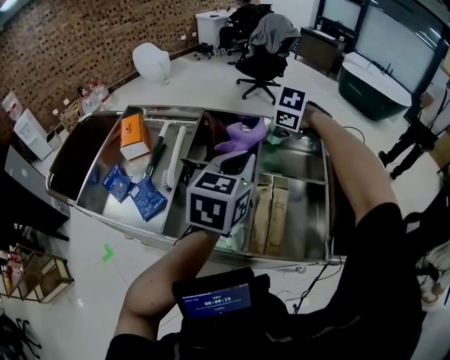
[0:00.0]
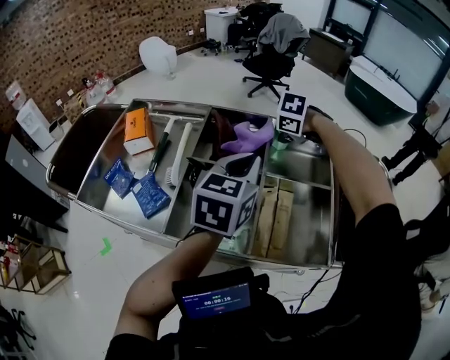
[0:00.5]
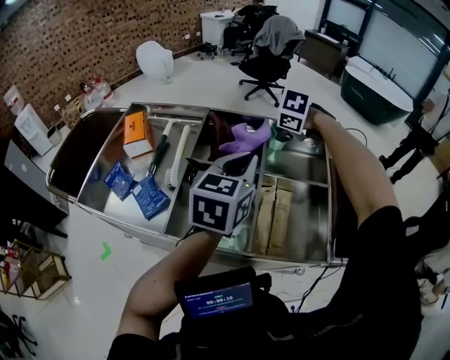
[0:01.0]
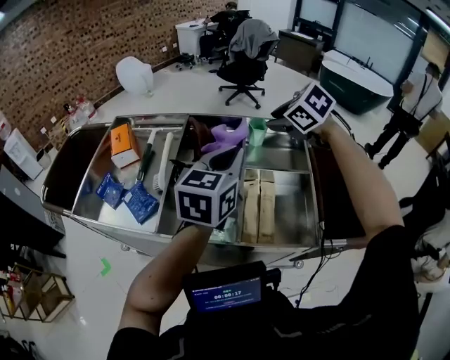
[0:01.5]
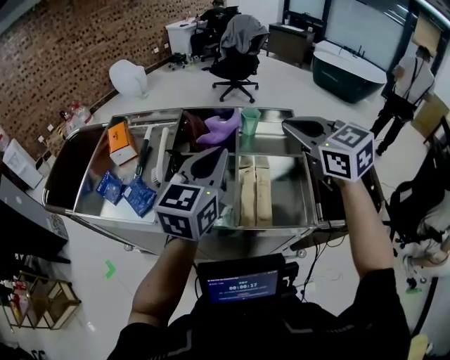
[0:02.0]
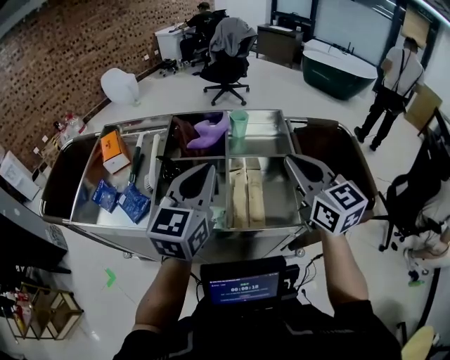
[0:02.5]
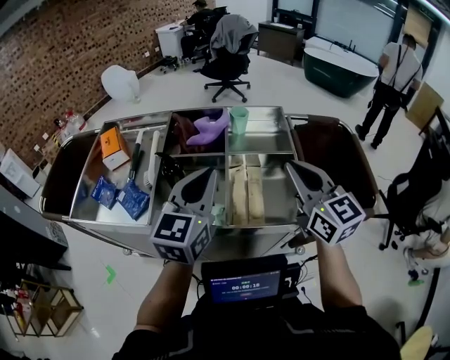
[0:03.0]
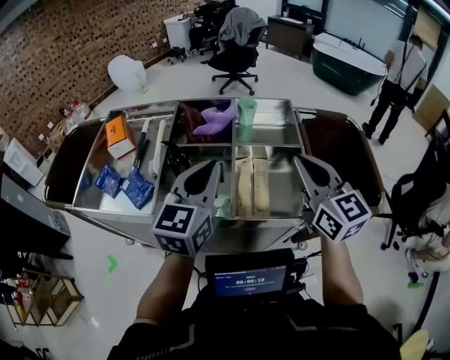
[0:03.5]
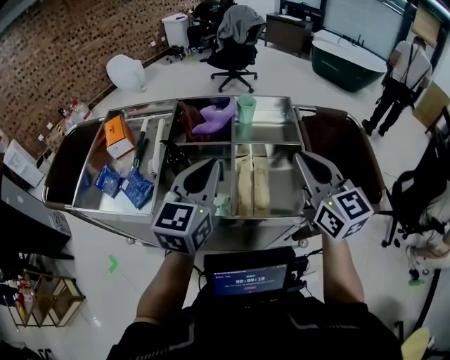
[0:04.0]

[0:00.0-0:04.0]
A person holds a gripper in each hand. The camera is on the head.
0:00.0 to 0:02.0: The left gripper ends up about 10 cm from where it was. Meanwhile the right gripper shifts by about 25 cm, tilts its fingers approximately 60 degrees upward, and opens, then closes again.
0:02.0 to 0:04.0: The left gripper shifts by roughly 5 cm, while the right gripper moves backward, approximately 10 cm, and swivels some 30 degrees.

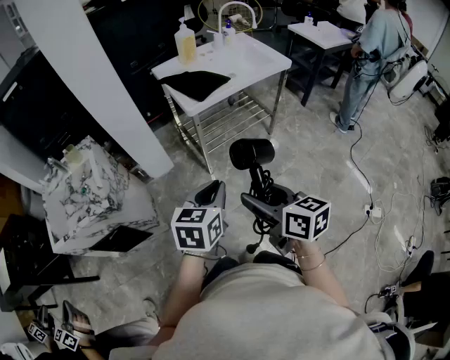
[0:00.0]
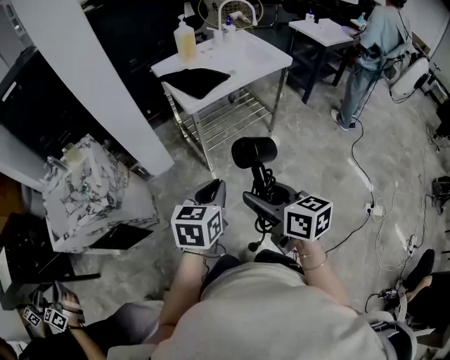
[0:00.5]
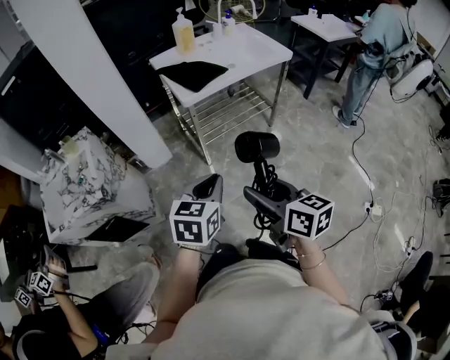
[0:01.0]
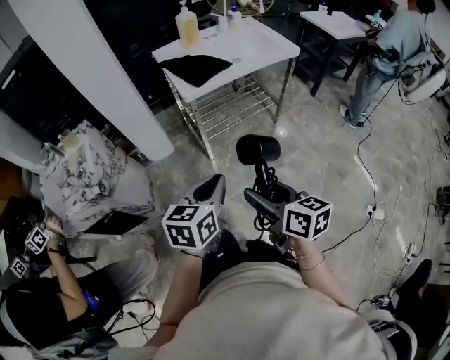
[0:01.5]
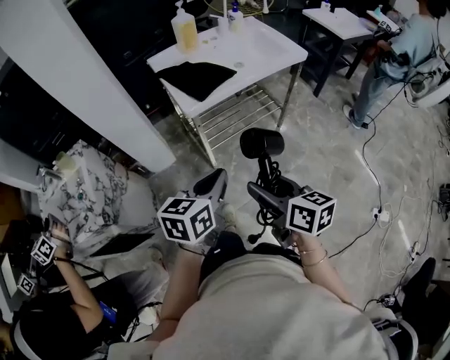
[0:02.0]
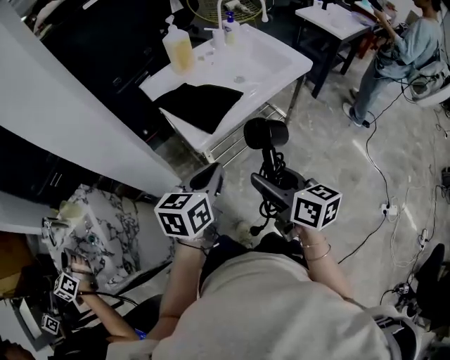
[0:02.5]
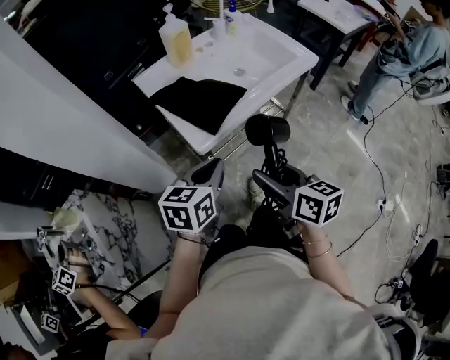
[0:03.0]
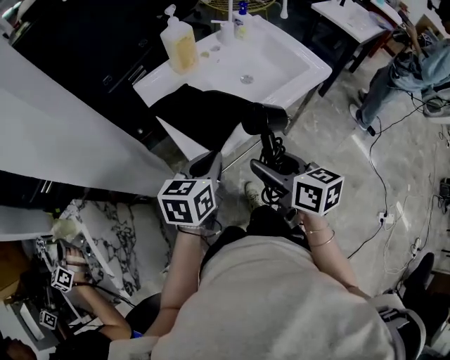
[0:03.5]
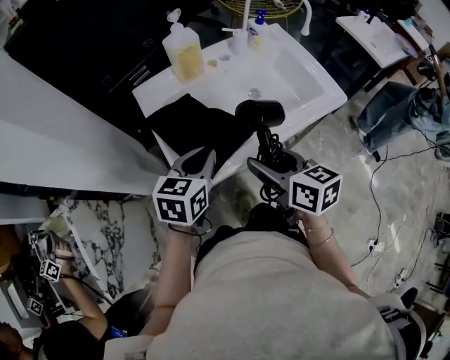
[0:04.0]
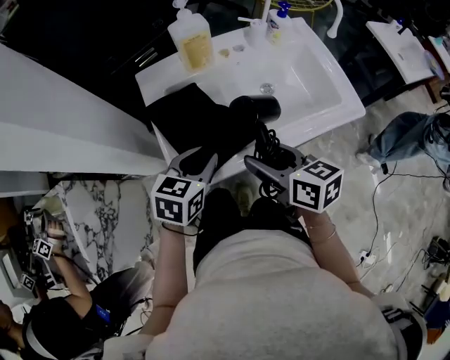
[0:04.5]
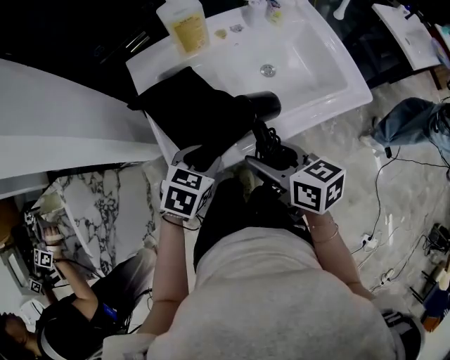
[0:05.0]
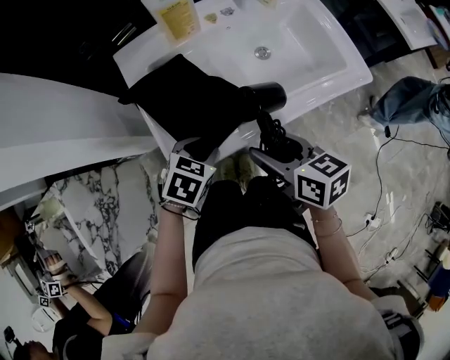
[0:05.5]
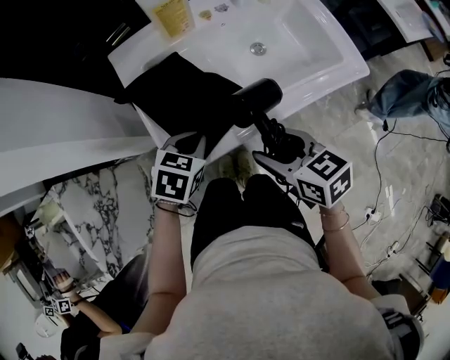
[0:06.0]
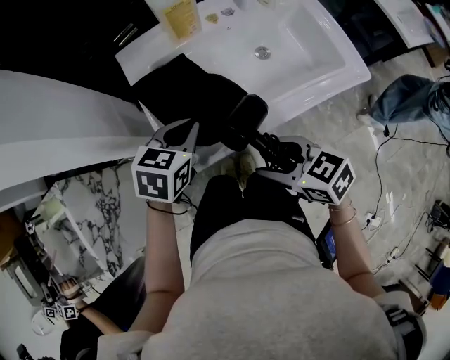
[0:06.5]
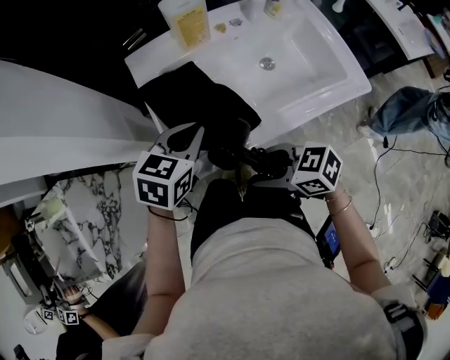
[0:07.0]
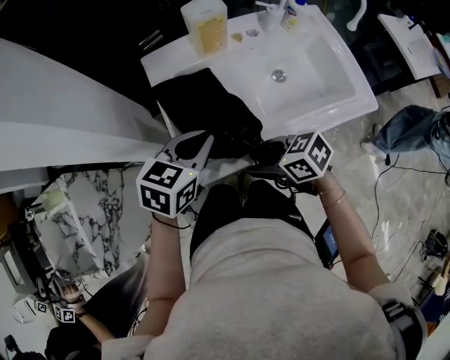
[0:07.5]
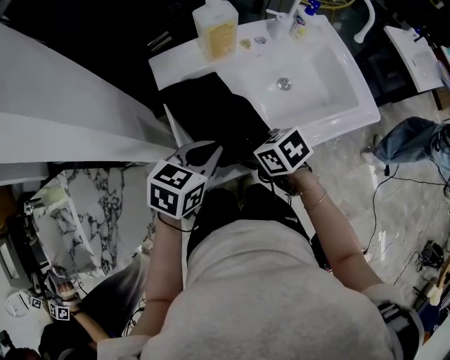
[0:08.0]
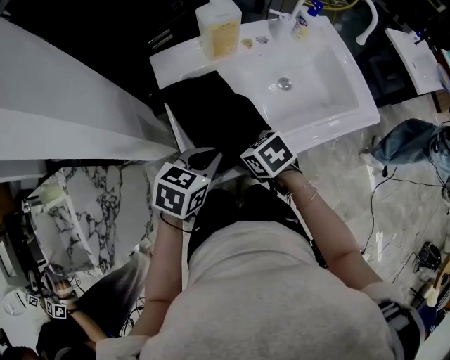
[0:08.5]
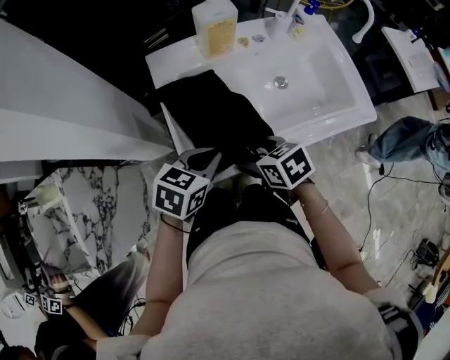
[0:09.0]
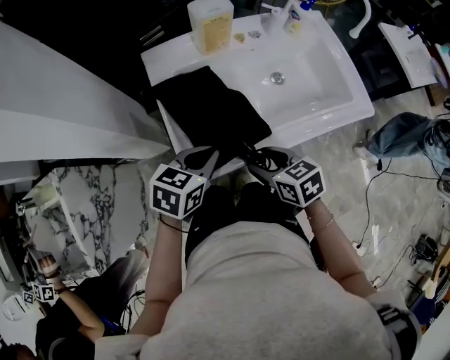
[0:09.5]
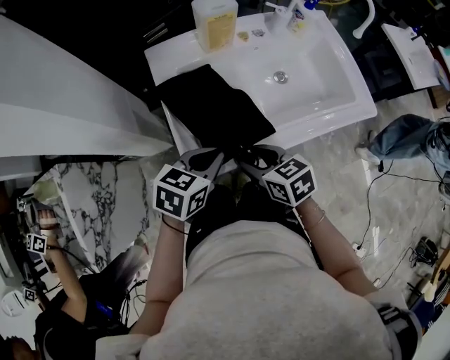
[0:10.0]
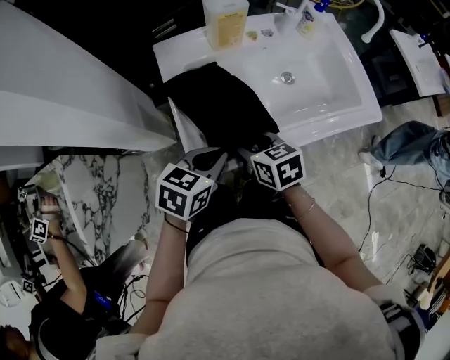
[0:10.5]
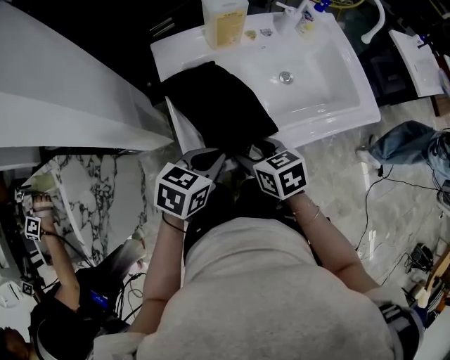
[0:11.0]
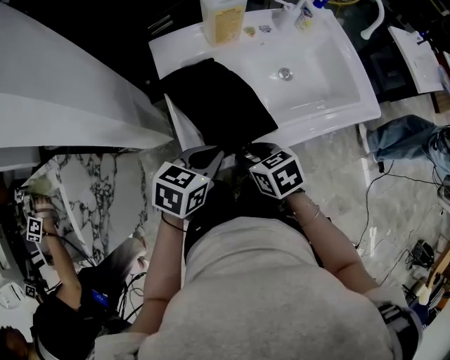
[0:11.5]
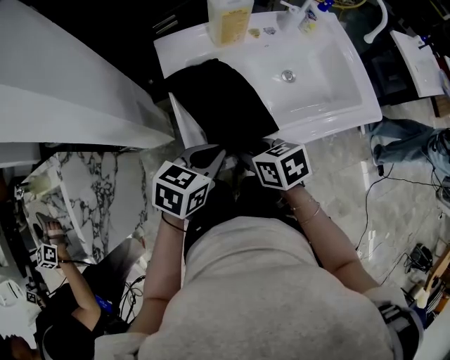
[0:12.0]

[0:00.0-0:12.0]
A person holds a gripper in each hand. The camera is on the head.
0:00.0 to 0:02.0: The grippers both shift forward by some 15 cm.
0:02.0 to 0:04.0: Both grippers are carried forward, some 40 cm.
0:04.0 to 0:06.0: The right gripper heads downward, covering about 5 cm, and turns by roughly 20 degrees; the left gripper moves downward, roughly 10 cm, swivels approximately 30 degrees, and opens, then closes once more.
0:06.0 to 0:08.0: The left gripper shifts roughly 10 cm upward; the right gripper ends up some 10 cm from where it was, and turns by some 20 degrees.
0:10.0 to 0:12.0: The grippers make only small movements.

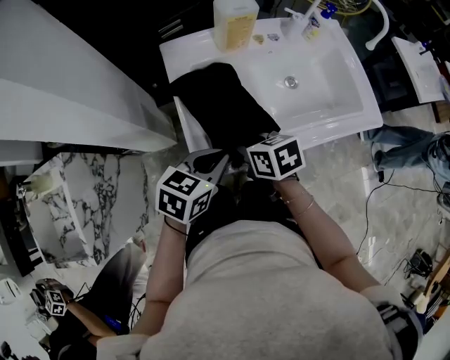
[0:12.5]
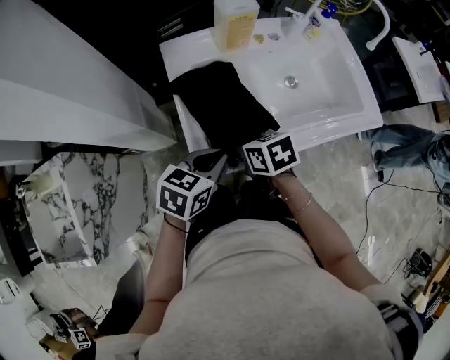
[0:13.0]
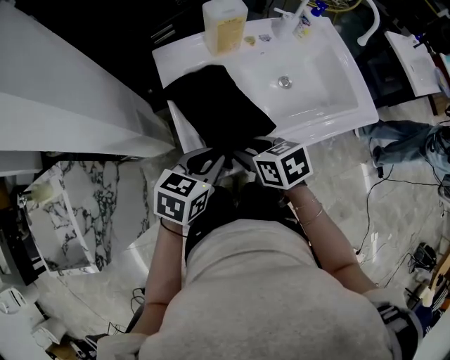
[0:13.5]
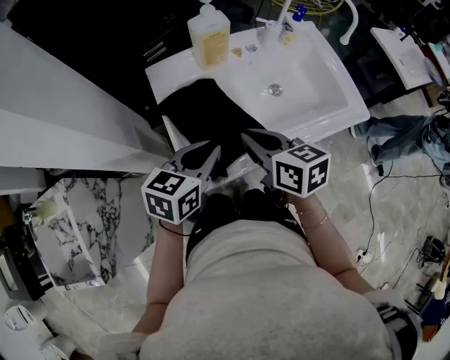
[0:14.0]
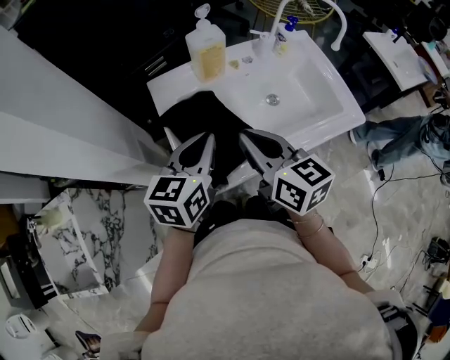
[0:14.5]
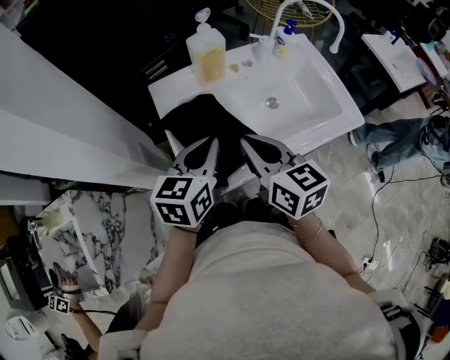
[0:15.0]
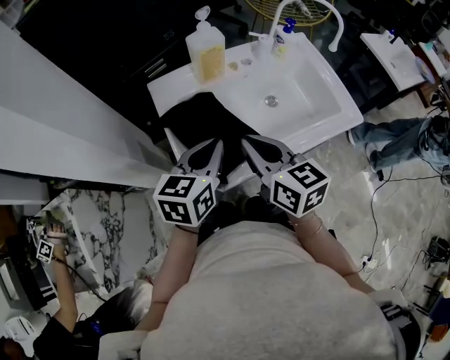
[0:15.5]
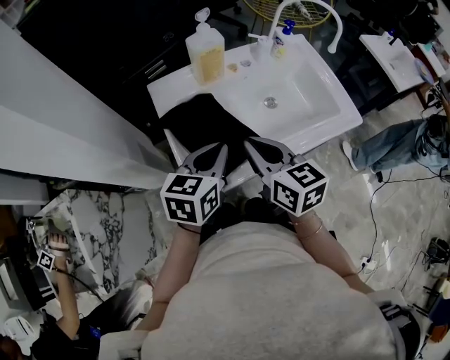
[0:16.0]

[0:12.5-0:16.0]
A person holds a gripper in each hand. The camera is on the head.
0:12.5 to 0:14.5: The left gripper moves upward and forward, roughly 15 cm, and rotates some 20 degrees. The right gripper shifts roughly 15 cm upward, and tips its fingers upward by approximately 30 degrees.
0:14.5 to 0:16.0: The grippers make only small movements.

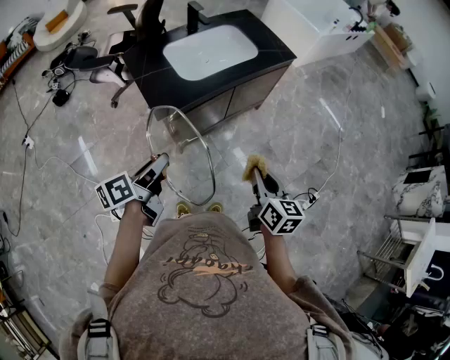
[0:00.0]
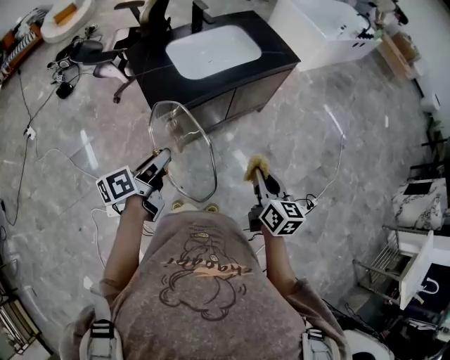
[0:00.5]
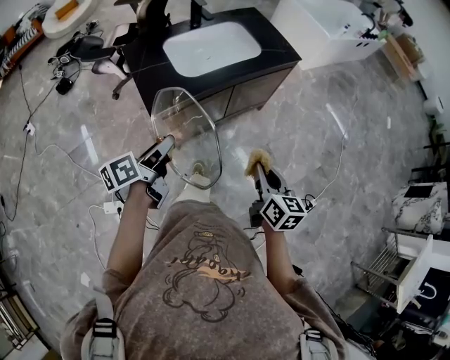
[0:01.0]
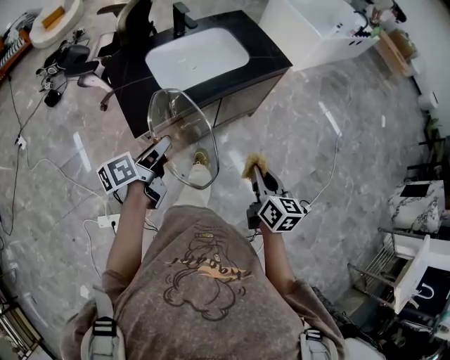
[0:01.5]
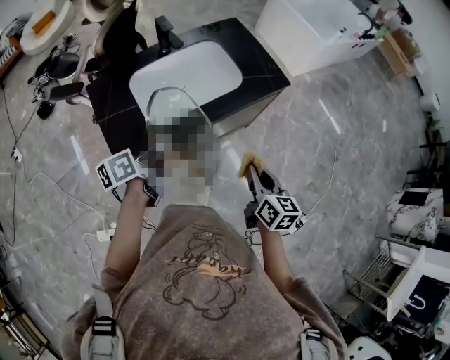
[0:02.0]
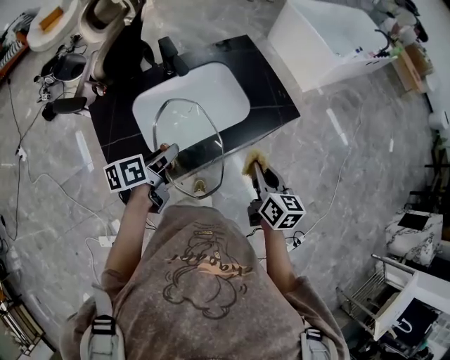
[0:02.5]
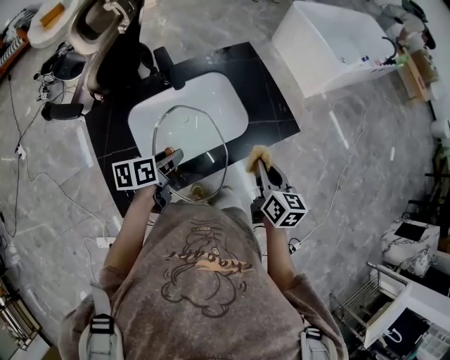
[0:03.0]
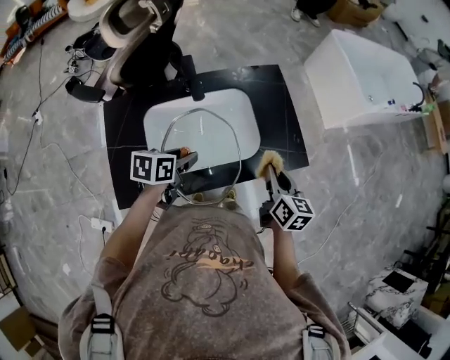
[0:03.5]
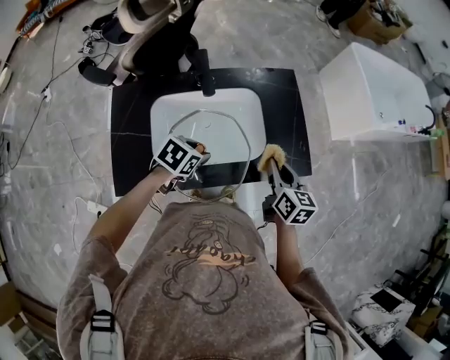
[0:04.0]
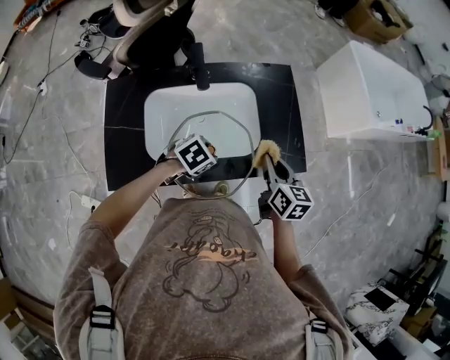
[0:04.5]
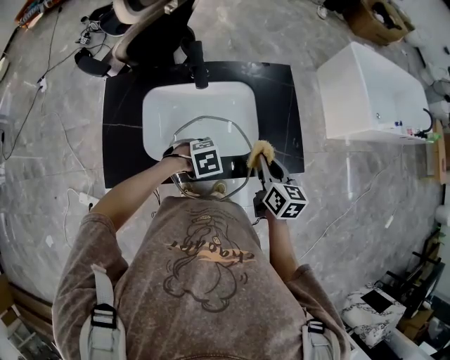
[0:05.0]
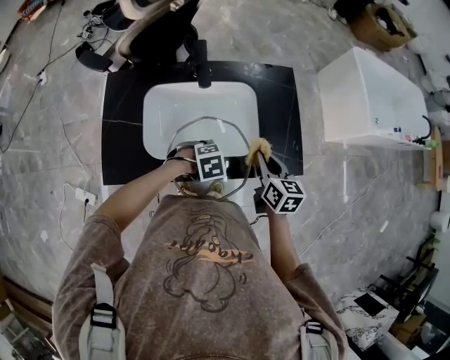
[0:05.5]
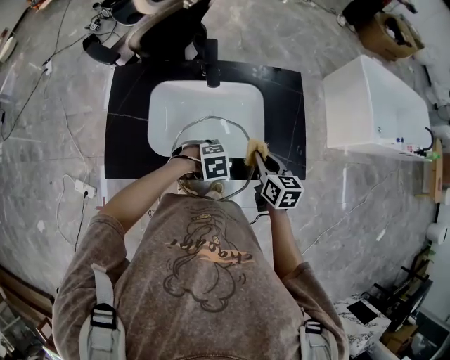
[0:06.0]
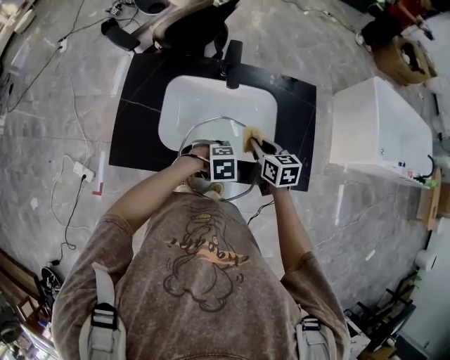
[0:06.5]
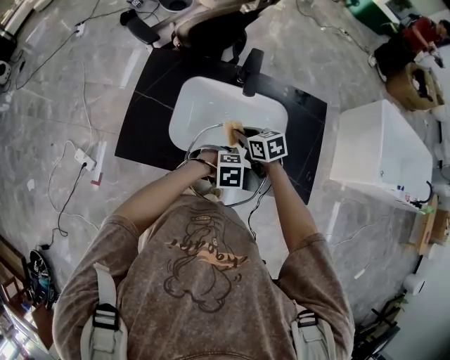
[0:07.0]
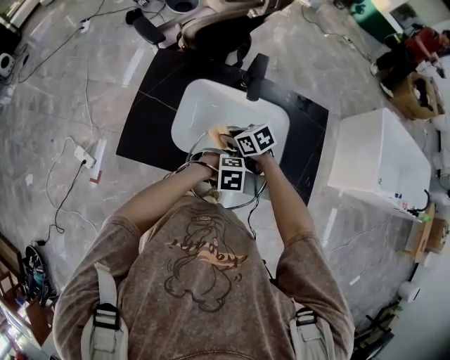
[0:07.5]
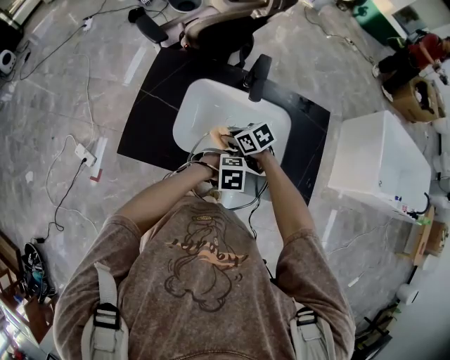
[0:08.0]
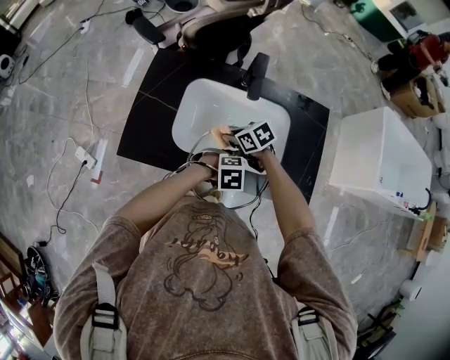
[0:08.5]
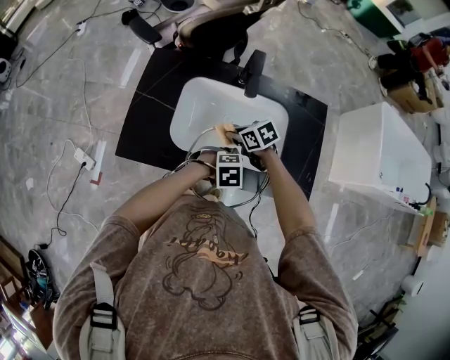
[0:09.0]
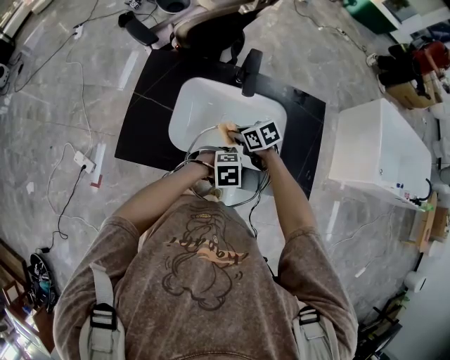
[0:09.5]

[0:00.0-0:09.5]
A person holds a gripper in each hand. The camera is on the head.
0:00.0 to 0:02.0: The grippers both shift forward by some 30 cm.
0:02.0 to 0:04.0: The left gripper shifts approximately 20 cm forward, and points its fingers about 40 degrees further downward, while the right gripper moves forward, roughly 35 cm, and rotates about 20 degrees.
0:04.0 to 0:05.5: The left gripper travels to the right and downward by about 10 cm, and turns by roughly 40 degrees.
0:05.5 to 0:07.5: The right gripper ends up some 25 cm from where it was, and swivels approximately 60 degrees.
0:07.5 to 0:09.5: There are only small adjustments of the grippers.
